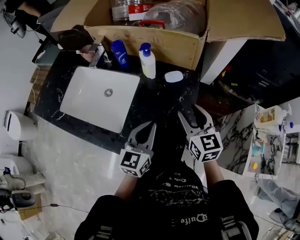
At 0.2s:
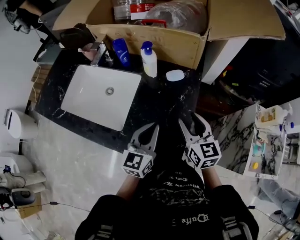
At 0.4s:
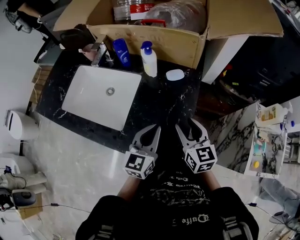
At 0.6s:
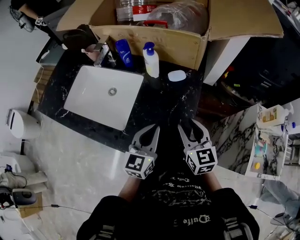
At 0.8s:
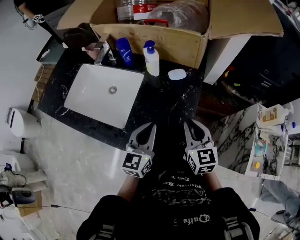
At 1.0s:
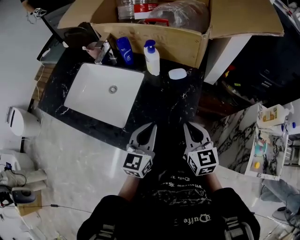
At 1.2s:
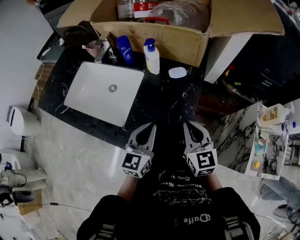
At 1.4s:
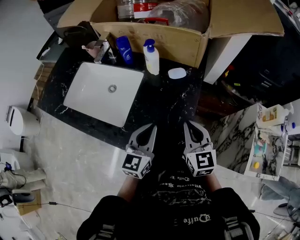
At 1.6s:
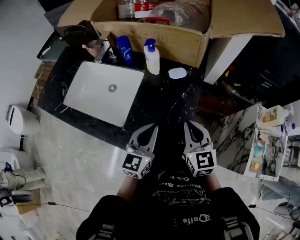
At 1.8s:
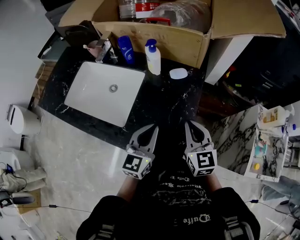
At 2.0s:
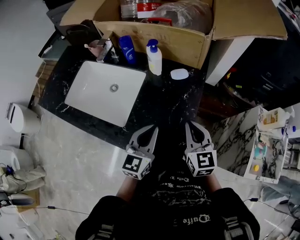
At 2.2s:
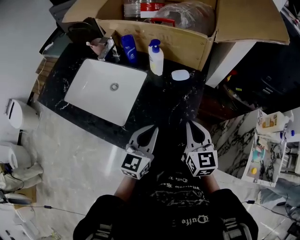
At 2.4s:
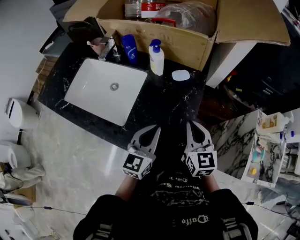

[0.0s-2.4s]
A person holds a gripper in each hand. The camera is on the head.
0.0s to 1.2s: The right gripper shifts about 5 cm backward, and closes its fingers.
1.2s to 2.4s: The grippers stay close to where they were, moving slightly.

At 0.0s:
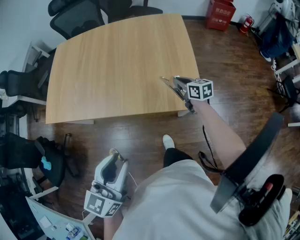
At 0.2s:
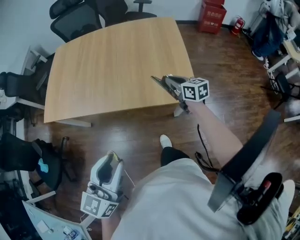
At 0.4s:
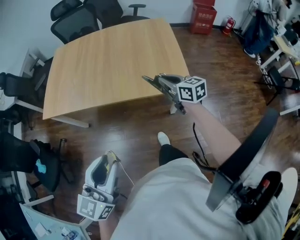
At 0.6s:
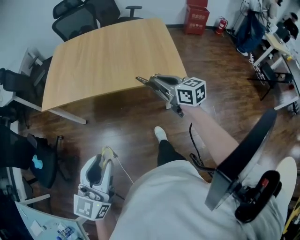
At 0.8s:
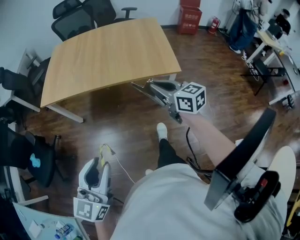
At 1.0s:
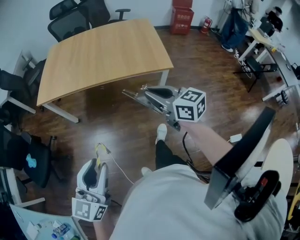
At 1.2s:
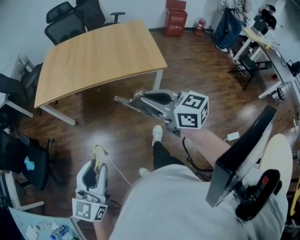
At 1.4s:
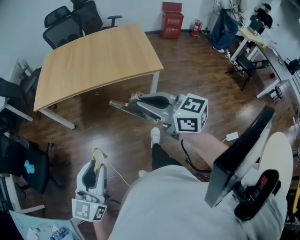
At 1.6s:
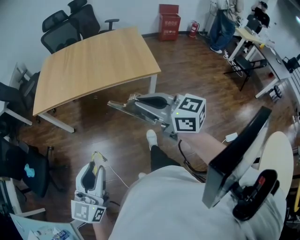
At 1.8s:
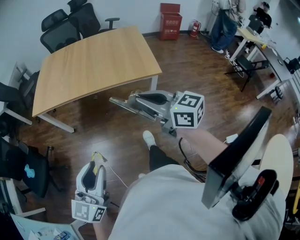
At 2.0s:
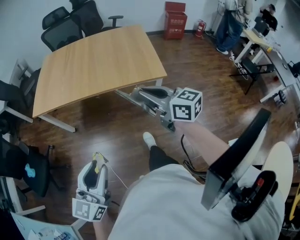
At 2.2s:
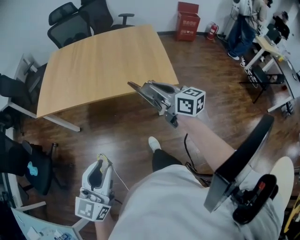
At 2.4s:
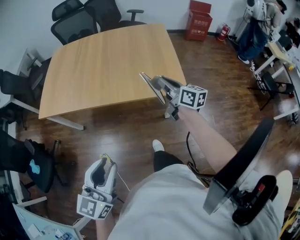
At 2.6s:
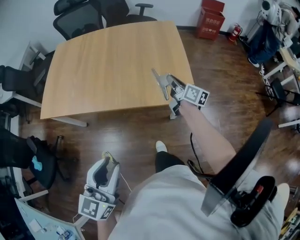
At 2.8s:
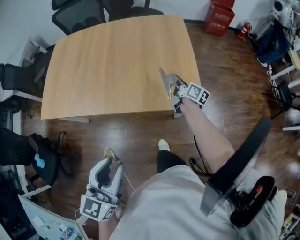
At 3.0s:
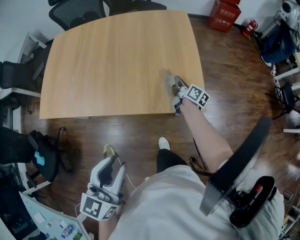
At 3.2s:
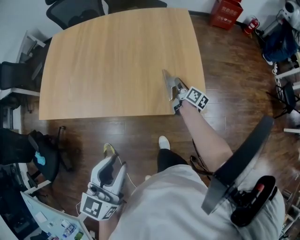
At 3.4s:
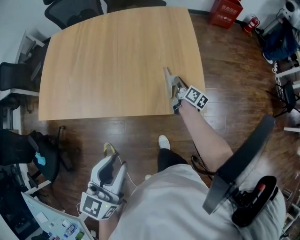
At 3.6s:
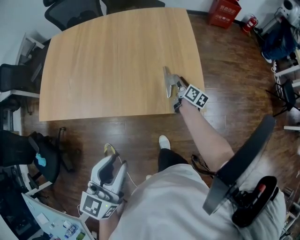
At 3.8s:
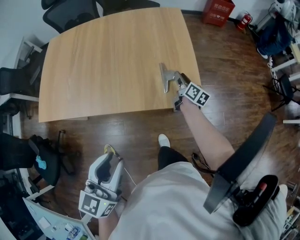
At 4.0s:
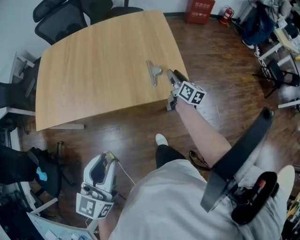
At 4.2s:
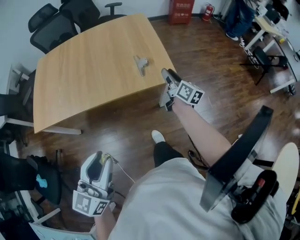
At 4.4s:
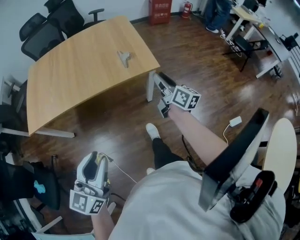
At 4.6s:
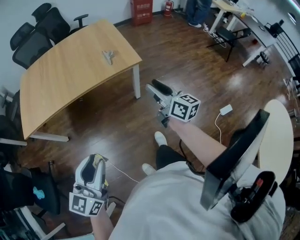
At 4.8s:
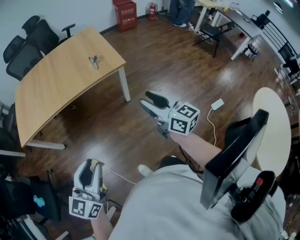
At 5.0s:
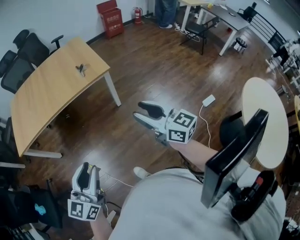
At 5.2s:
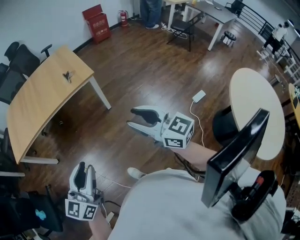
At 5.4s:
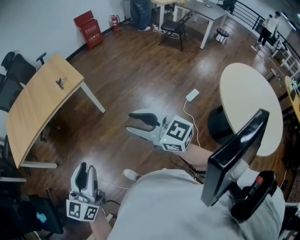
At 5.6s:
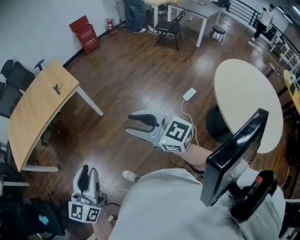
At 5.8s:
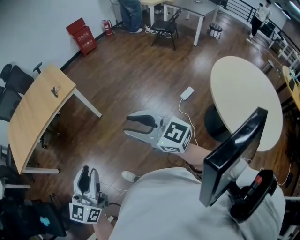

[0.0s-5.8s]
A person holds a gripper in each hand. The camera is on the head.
0.0s to 1.4s: The right gripper shifts roughly 50 cm backward, upward and to the left, and turns by roughly 30 degrees; the left gripper goes some 30 cm backward and to the left.
1.4s to 2.8s: The right gripper is displaced forward, downward and to the right by roughly 50 cm, and twists approximately 50 degrees clockwise, seen from behind. The left gripper is displaced forward and to the right by roughly 25 cm.
2.8s to 4.4s: The right gripper goes about 30 cm backward and upward, turns by approximately 20 degrees, and opens up; the left gripper shifts some 10 cm backward.
4.4s to 5.8s: The right gripper moves backward and to the right, roughly 50 cm, and rotates about 40 degrees, while the left gripper is displaced to the right and backward by some 35 cm.

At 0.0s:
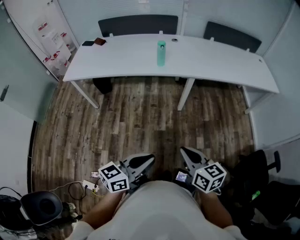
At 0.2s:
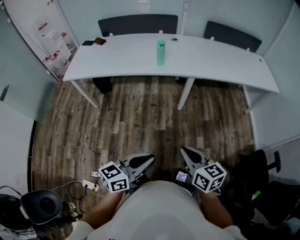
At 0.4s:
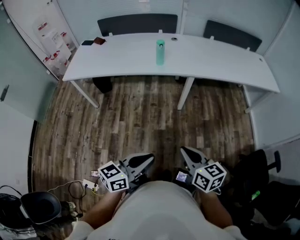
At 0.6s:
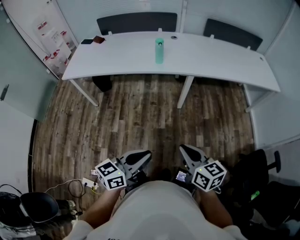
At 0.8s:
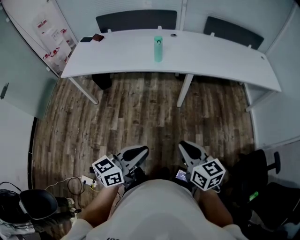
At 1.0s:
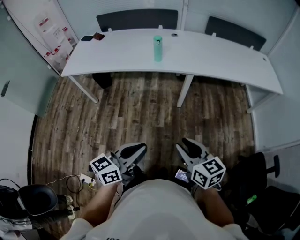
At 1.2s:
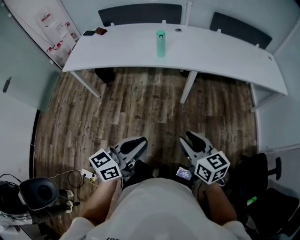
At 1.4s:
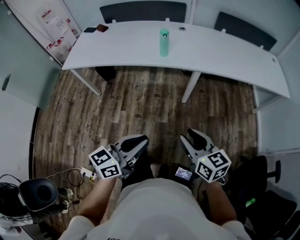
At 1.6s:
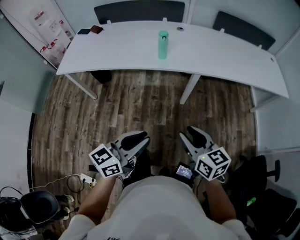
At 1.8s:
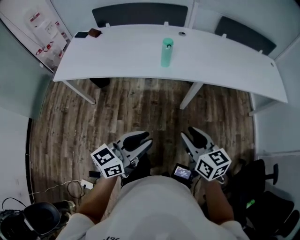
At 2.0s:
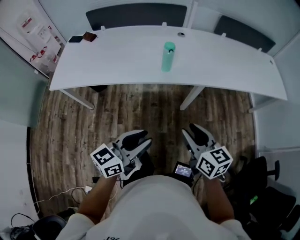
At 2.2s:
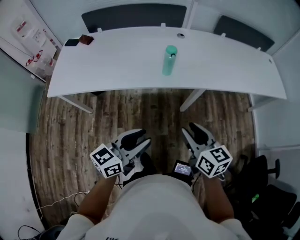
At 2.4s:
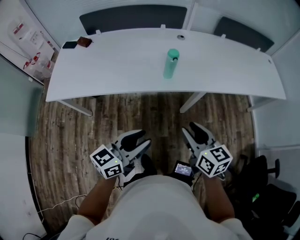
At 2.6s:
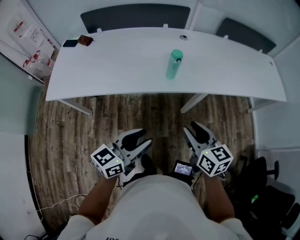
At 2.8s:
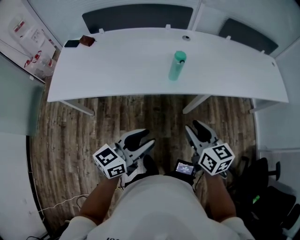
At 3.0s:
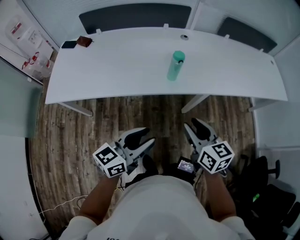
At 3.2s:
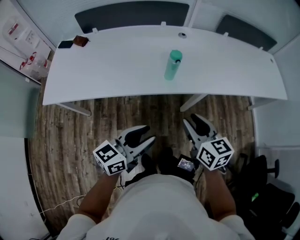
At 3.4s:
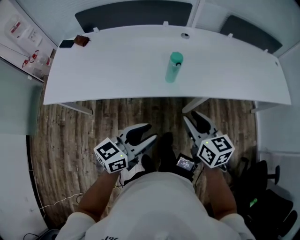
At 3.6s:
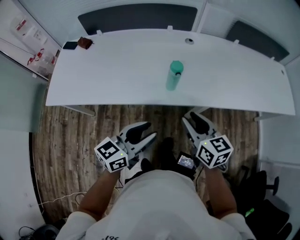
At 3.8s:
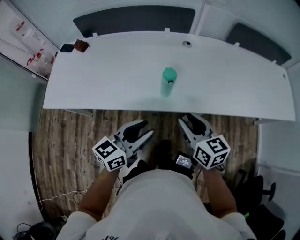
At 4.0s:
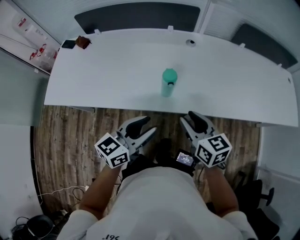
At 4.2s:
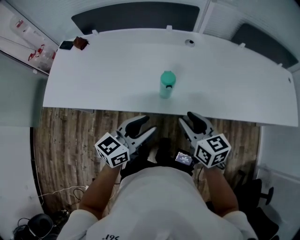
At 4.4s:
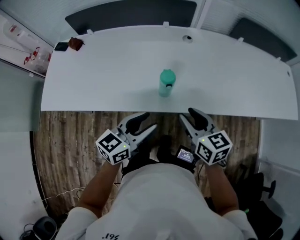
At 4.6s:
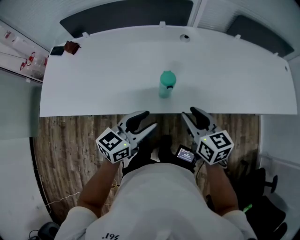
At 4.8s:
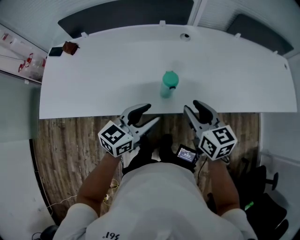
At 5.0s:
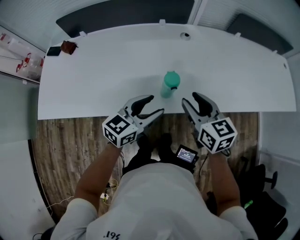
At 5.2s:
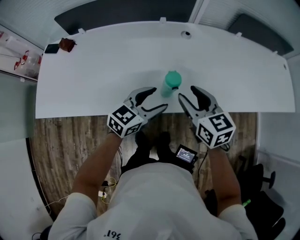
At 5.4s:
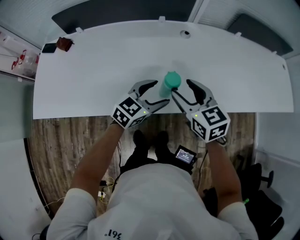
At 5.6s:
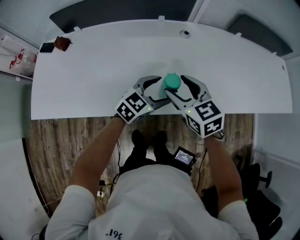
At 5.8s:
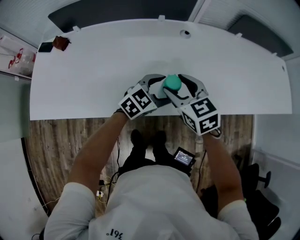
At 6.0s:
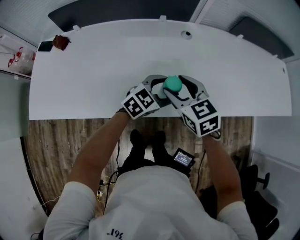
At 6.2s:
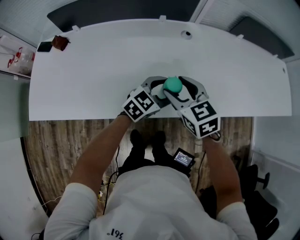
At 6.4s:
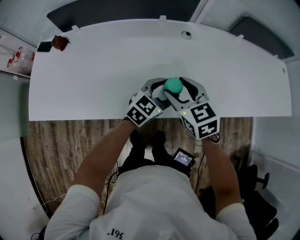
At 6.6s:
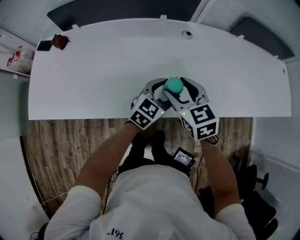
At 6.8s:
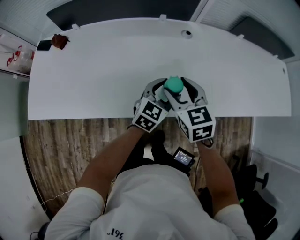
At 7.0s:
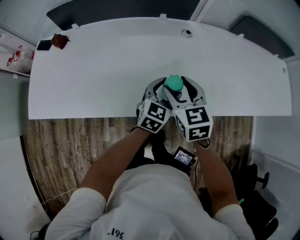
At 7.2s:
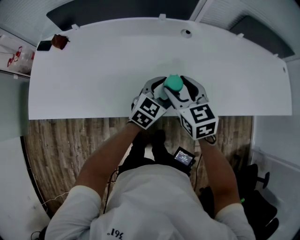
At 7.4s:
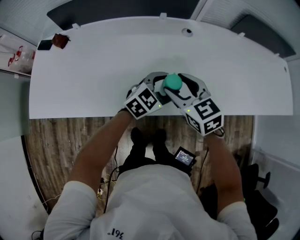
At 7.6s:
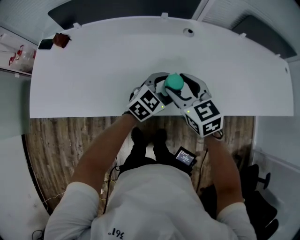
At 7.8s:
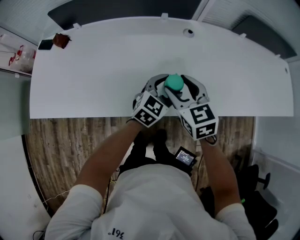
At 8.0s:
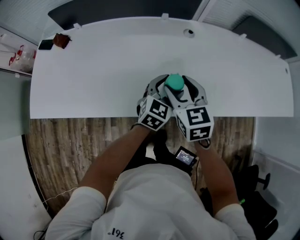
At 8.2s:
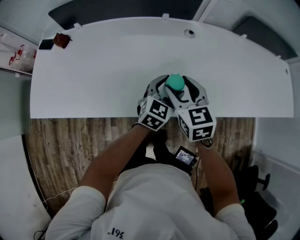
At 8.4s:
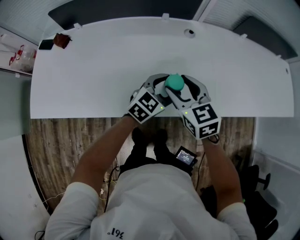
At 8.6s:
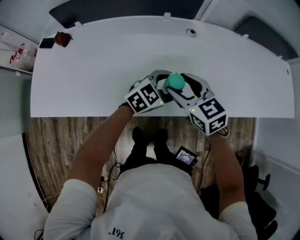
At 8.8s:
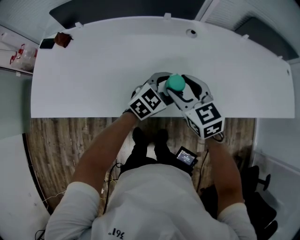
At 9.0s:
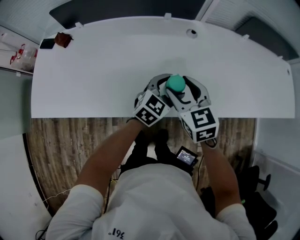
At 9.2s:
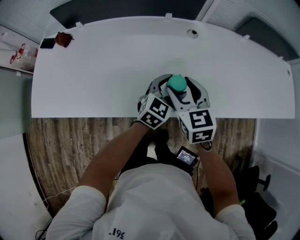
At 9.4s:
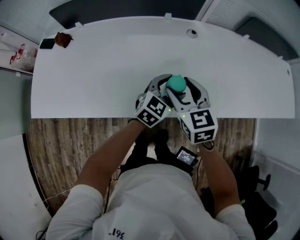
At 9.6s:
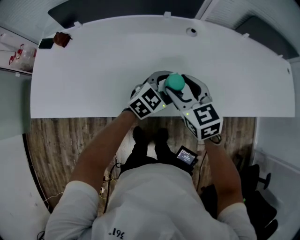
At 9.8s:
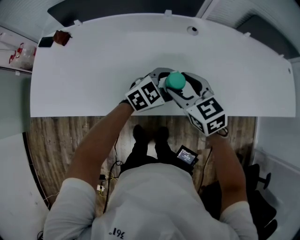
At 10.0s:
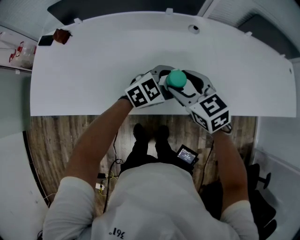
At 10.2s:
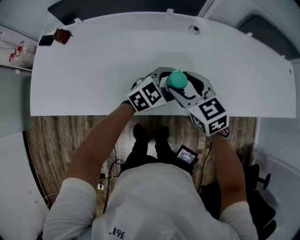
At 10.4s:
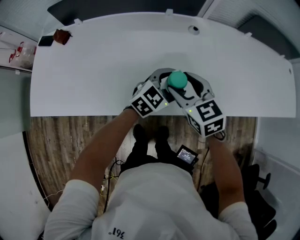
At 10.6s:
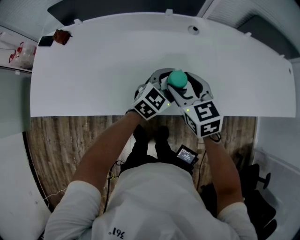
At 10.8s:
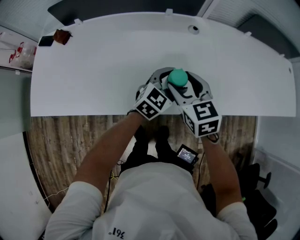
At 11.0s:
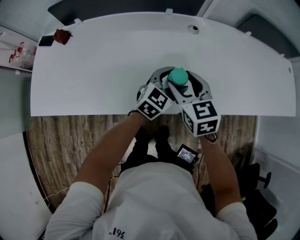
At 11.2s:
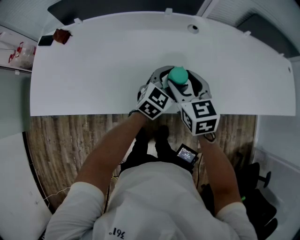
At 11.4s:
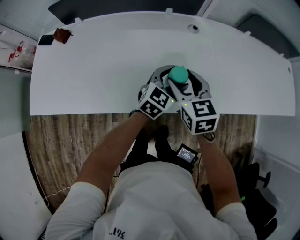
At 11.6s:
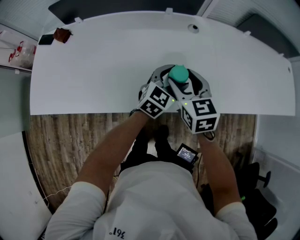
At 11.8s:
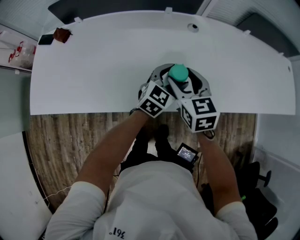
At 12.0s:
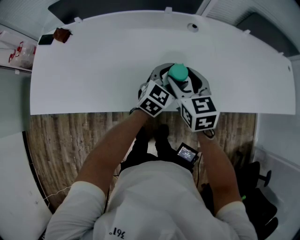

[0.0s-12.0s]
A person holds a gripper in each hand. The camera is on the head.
0.0s to 1.6s: Both grippers move forward, some 15 cm. The right gripper opens its fingers.
1.6s to 3.0s: Both grippers travel together forward and to the left, some 25 cm.
3.0s to 4.4s: Both grippers move forward, roughly 20 cm.
4.4s to 6.0s: The right gripper heads forward and to the left, covering about 15 cm, rotates about 20 degrees, and opens up. The left gripper travels forward and downward by some 20 cm, changes its angle by approximately 30 degrees, and opens.
10.4s to 12.0s: The grippers make only small movements.

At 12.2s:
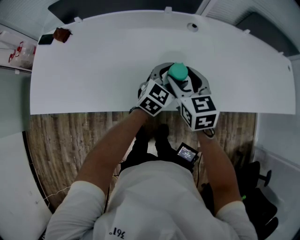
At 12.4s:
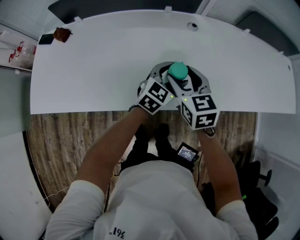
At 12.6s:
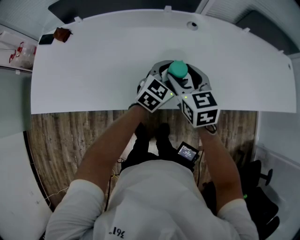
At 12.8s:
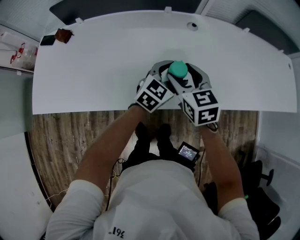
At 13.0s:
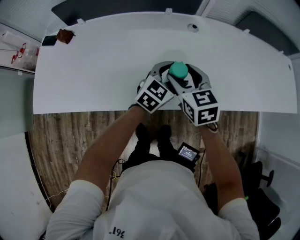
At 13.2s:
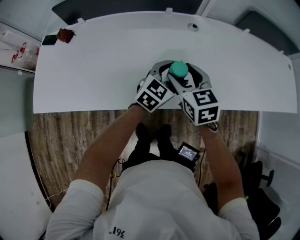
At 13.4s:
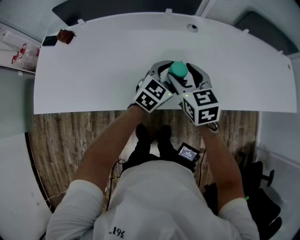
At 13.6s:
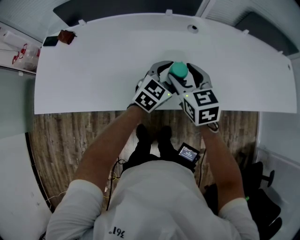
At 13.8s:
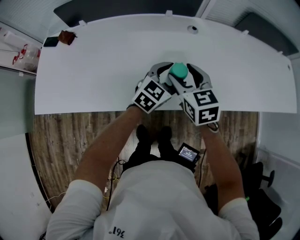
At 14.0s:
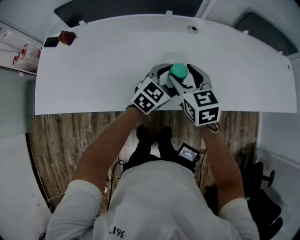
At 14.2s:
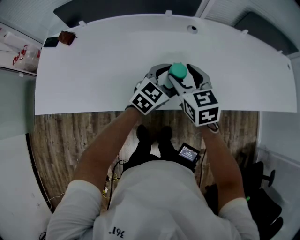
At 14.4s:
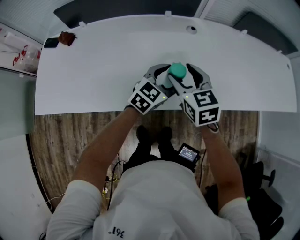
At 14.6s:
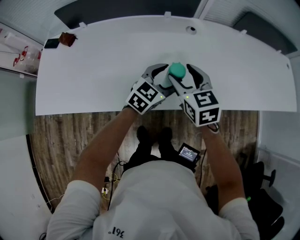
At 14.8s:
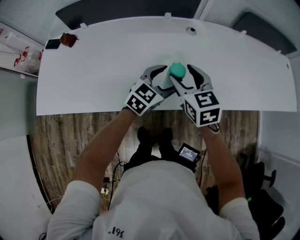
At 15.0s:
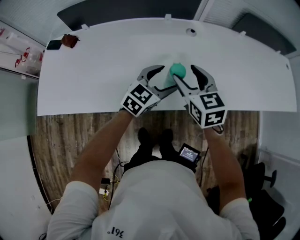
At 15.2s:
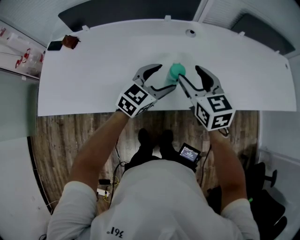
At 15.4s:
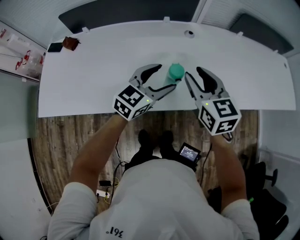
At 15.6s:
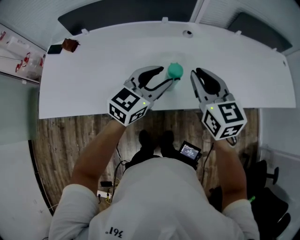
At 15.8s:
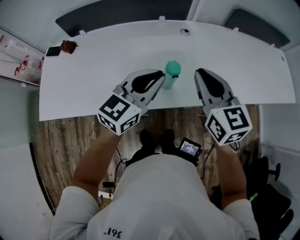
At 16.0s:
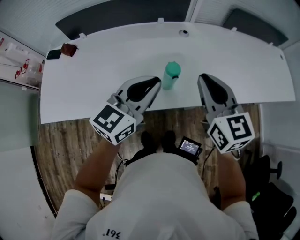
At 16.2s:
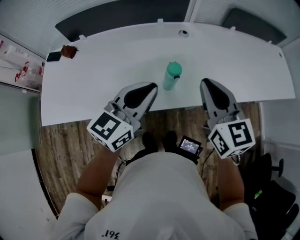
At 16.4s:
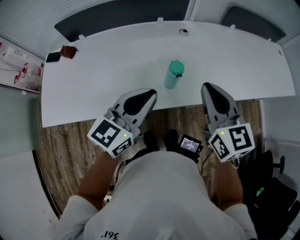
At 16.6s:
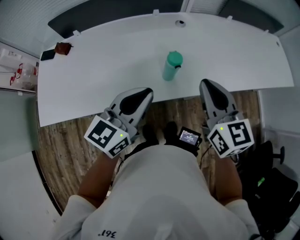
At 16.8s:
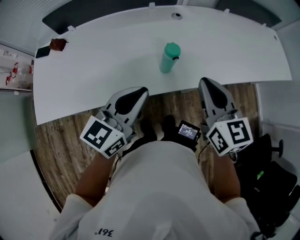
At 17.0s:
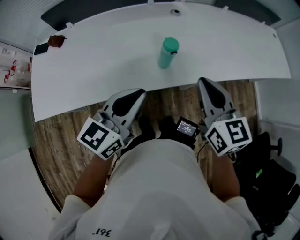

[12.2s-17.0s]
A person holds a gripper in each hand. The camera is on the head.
12.2s to 13.8s: The grippers stay close to where they were, moving slightly.
13.8s to 15.4s: Both grippers move upward, approximately 10 cm. The right gripper closes its fingers.
15.4s to 17.0s: Both grippers travel together backward, roughly 15 cm. The left gripper closes its fingers. The right gripper closes.
